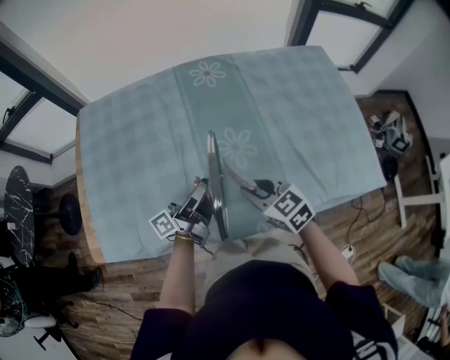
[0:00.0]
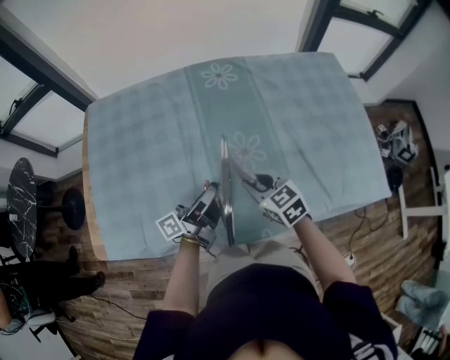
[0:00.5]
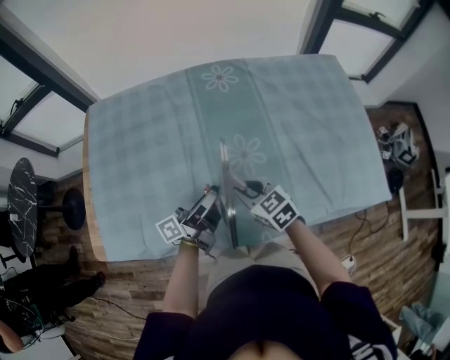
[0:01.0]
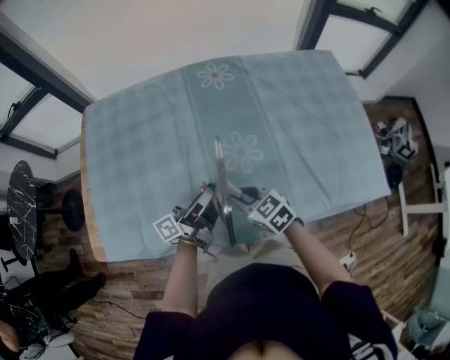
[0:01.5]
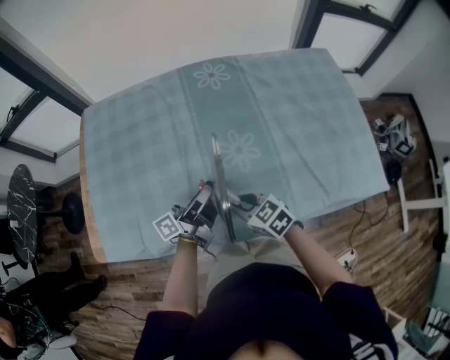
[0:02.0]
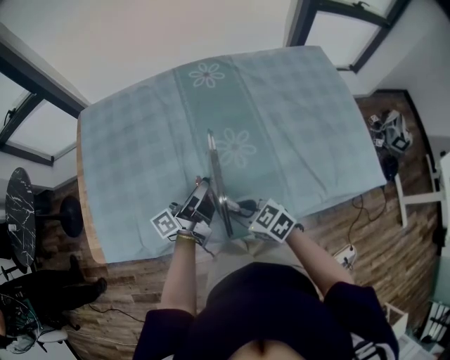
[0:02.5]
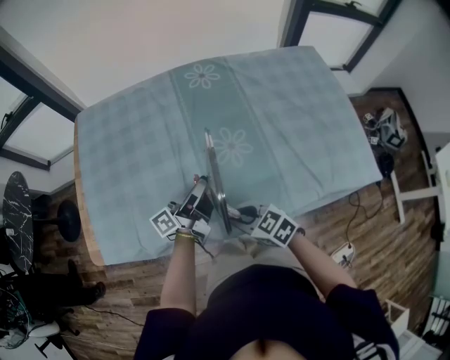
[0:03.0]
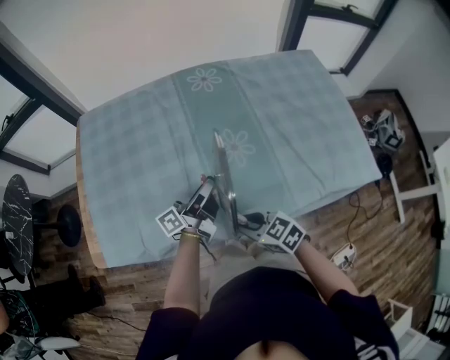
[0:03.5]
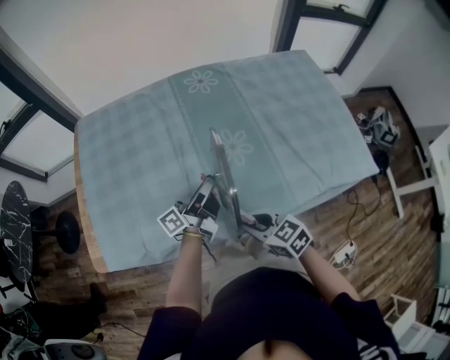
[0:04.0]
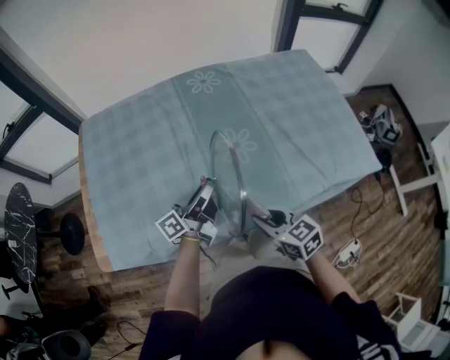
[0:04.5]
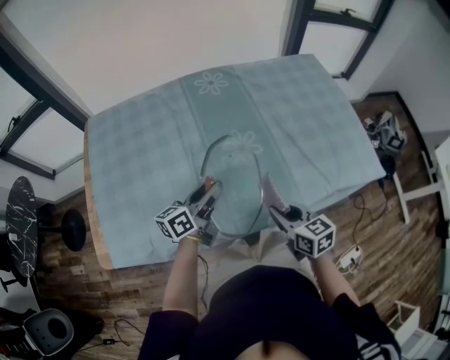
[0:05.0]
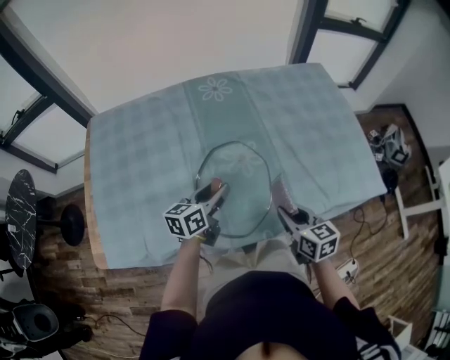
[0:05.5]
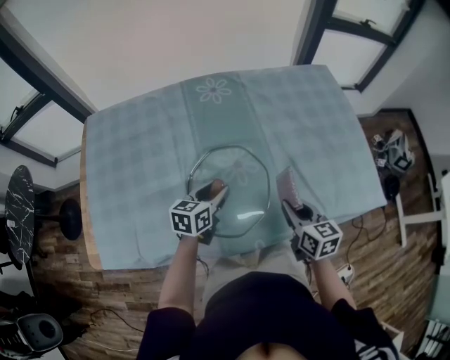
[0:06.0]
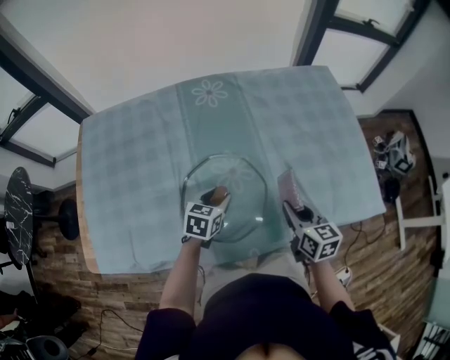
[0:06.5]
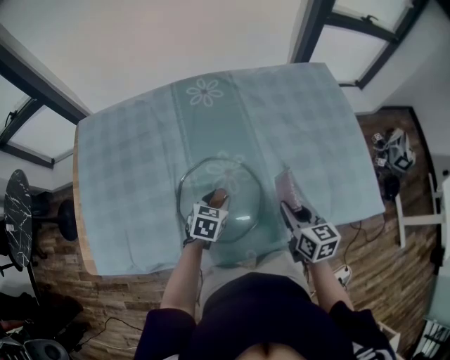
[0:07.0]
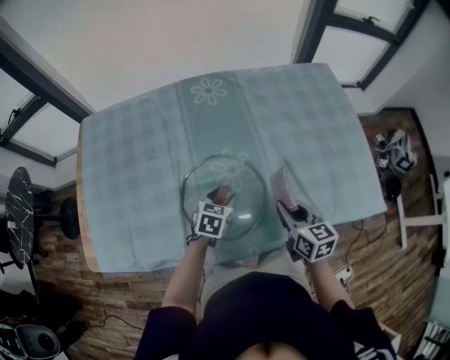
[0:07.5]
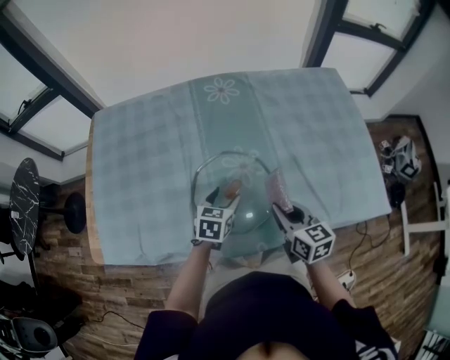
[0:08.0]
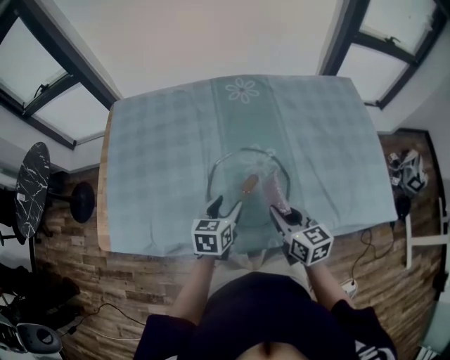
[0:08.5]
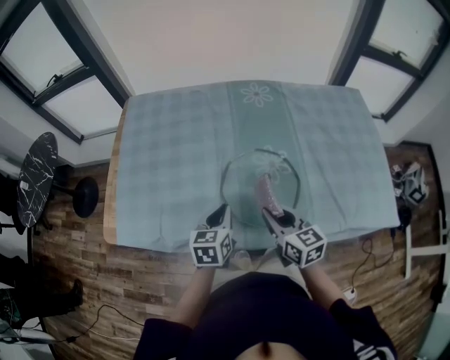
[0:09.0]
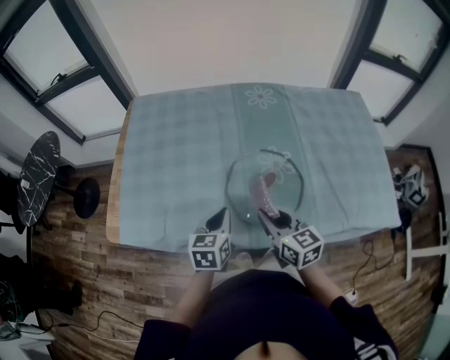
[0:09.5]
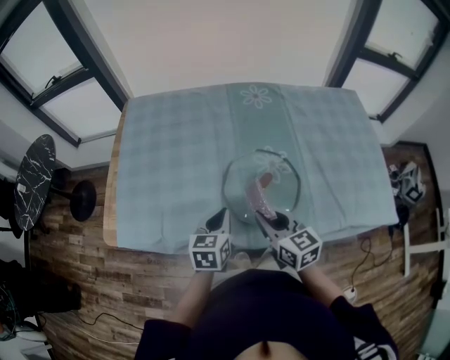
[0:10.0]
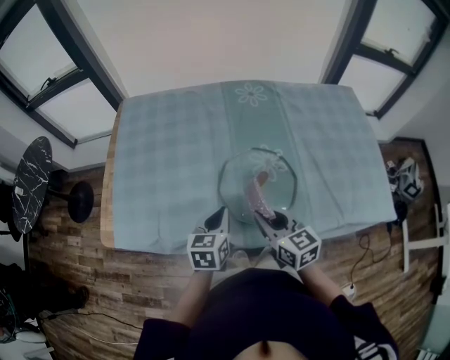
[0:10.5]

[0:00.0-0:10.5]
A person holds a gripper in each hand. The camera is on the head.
0:00.0 to 0:02.0: The right gripper shifts approximately 10 cm downward and to the left.
0:02.0 to 0:04.0: The right gripper shifts approximately 10 cm backward.
0:04.0 to 0:06.5: The left gripper heads downward, to the right and forward, covering about 15 cm, and angles its fingers downward, by roughly 60 degrees, while the right gripper heads to the right and forward, covering about 25 cm, and swivels some 40 degrees.
0:06.5 to 0:08.5: The right gripper is displaced to the left by some 15 cm. Meanwhile the left gripper goes approximately 10 cm backward and to the left, and opens.
0:08.5 to 0:10.5: Both grippers move to the left, approximately 10 cm. The left gripper closes up.

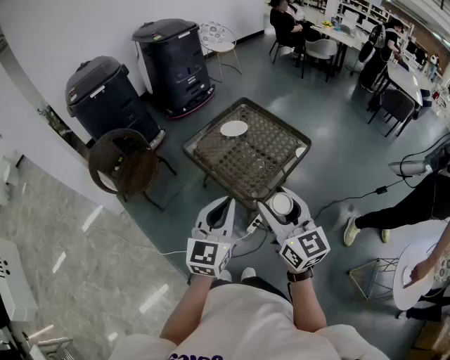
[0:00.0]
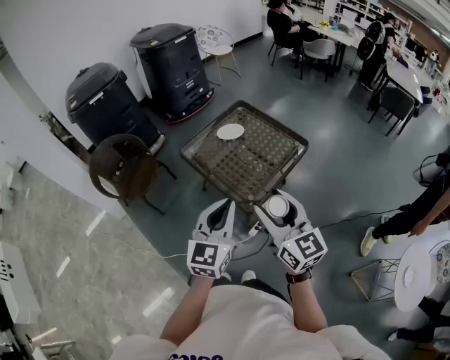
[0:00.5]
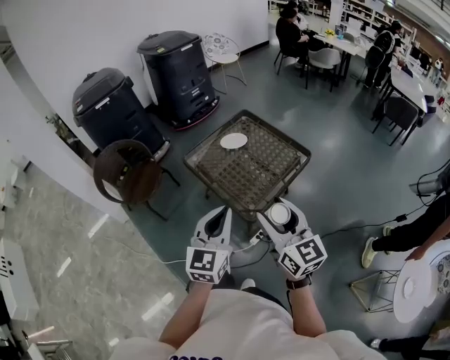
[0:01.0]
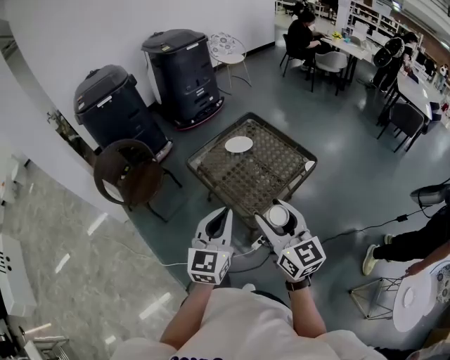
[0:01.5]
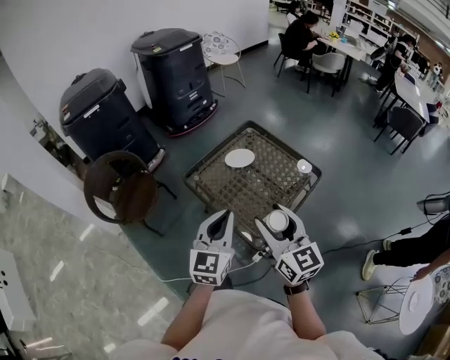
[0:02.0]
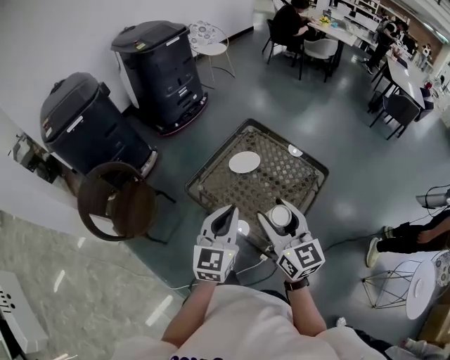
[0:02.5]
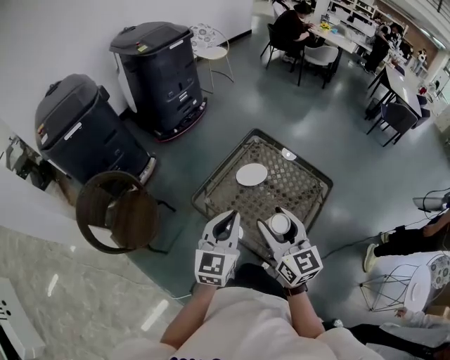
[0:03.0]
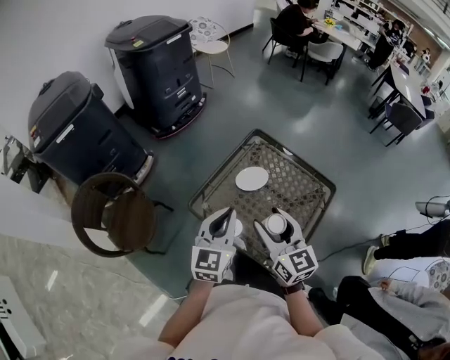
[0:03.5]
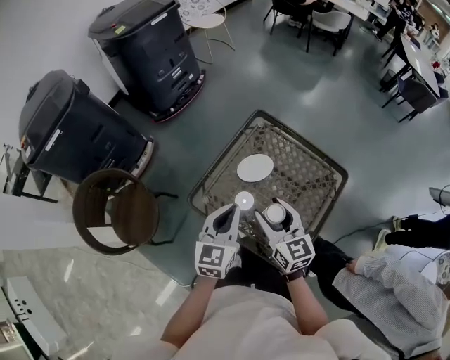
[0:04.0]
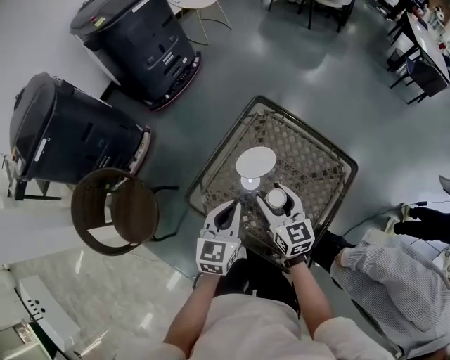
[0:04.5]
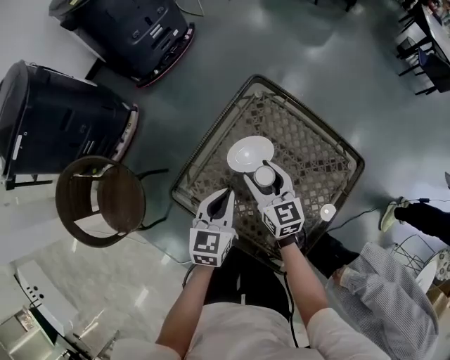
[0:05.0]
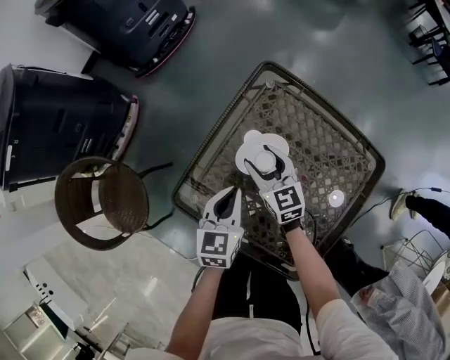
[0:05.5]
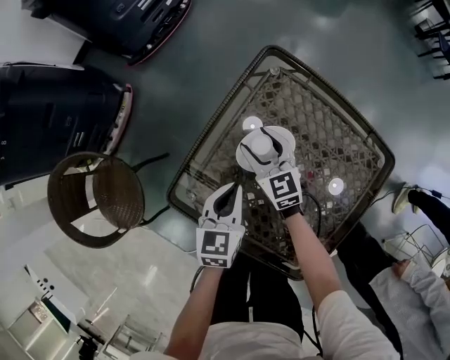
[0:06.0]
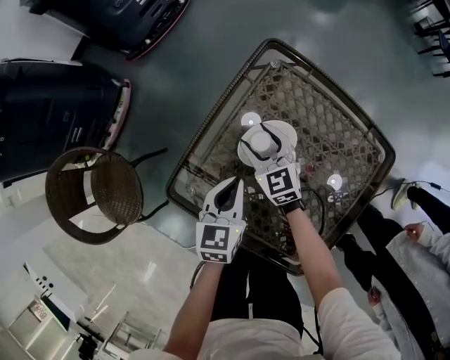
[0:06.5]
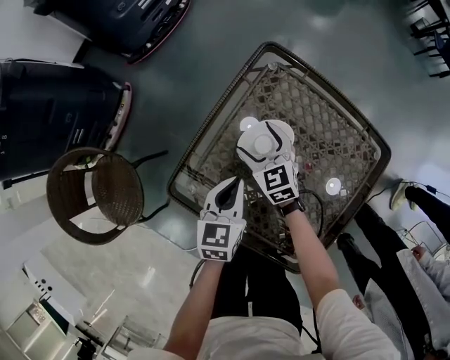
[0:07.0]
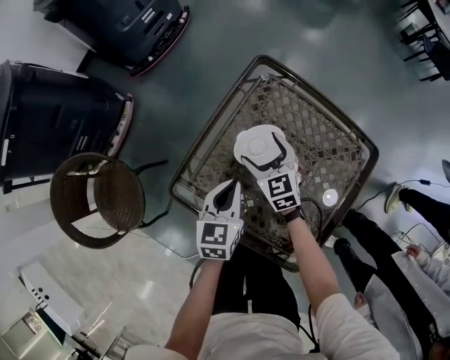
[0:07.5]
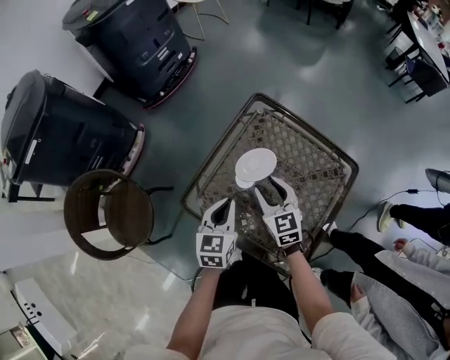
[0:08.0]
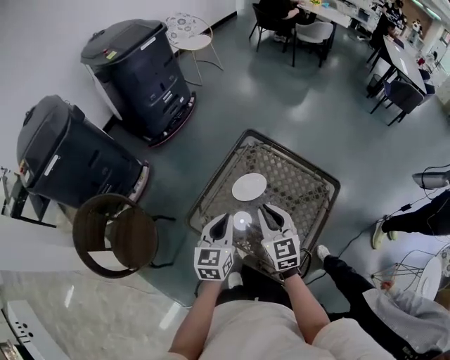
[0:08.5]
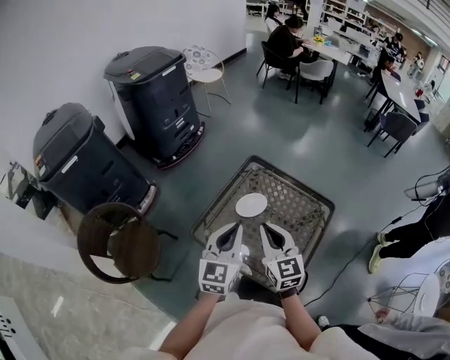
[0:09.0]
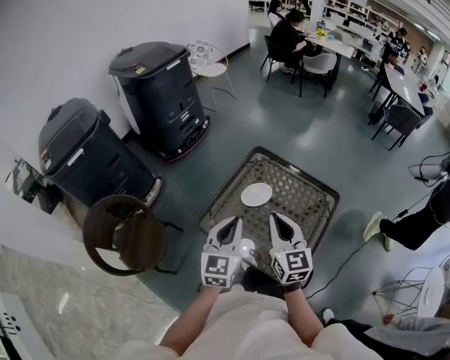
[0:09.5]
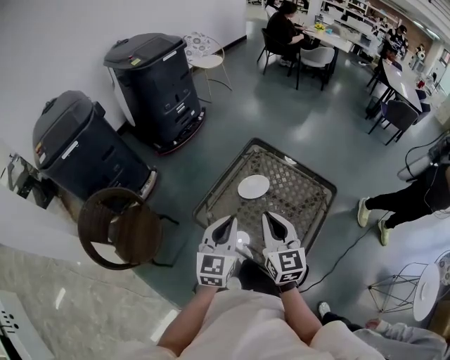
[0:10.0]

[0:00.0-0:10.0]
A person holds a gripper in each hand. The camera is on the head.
0:00.0 to 0:02.0: The two grippers go roughly 15 cm forward.
0:02.0 to 0:04.0: Both grippers travel together forward and downward, some 30 cm.
0:04.0 to 0:06.0: Both grippers travel together downward and forward, about 30 cm. The left gripper swivels roughly 20 degrees.
0:06.0 to 0:08.0: The left gripper is displaced upward and backward by about 10 cm, while the right gripper moves upward and backward, about 20 cm, and opens, then closes once more.
0:08.0 to 0:10.0: Both grippers travel together upward and backward, roughly 25 cm. The right gripper rotates roughly 20 degrees, and closes its fingers, while the left gripper swivels some 20 degrees.

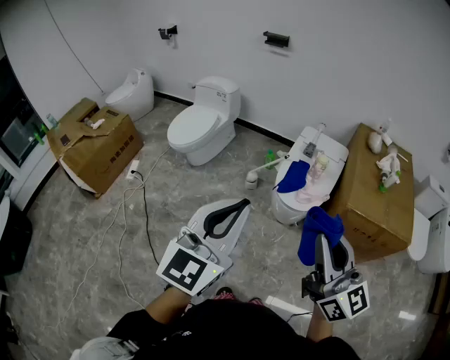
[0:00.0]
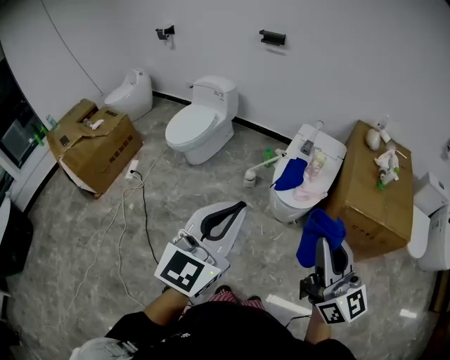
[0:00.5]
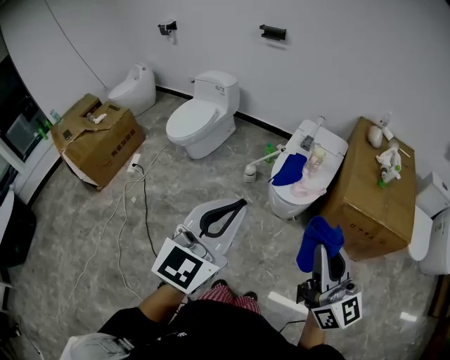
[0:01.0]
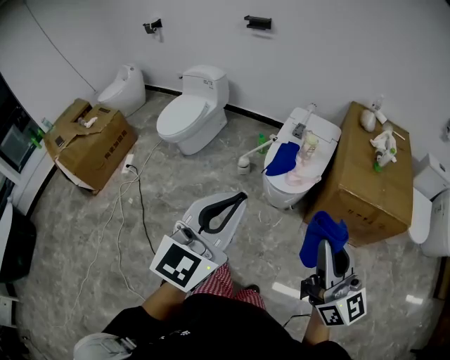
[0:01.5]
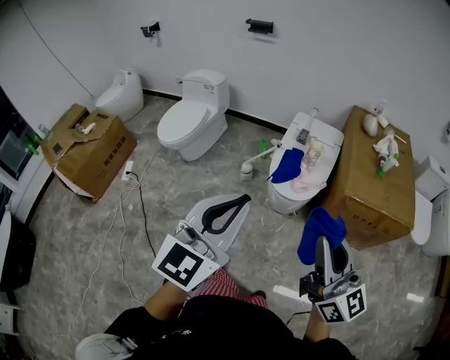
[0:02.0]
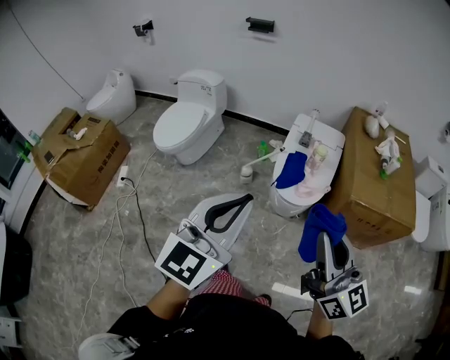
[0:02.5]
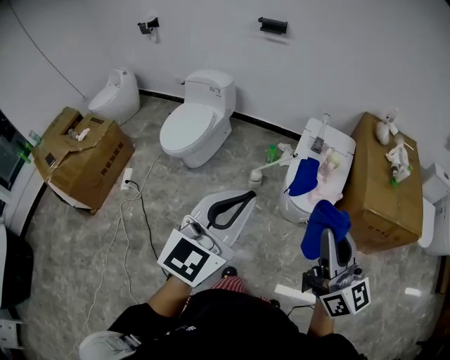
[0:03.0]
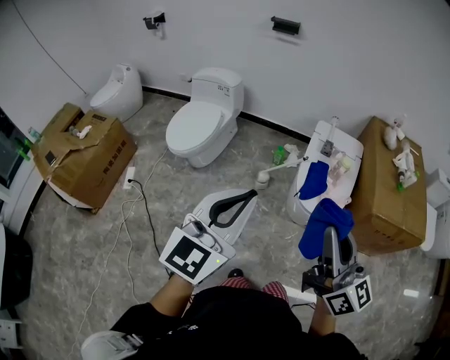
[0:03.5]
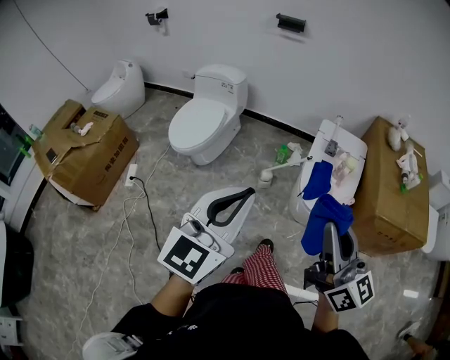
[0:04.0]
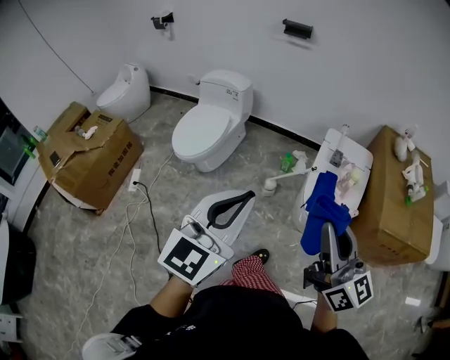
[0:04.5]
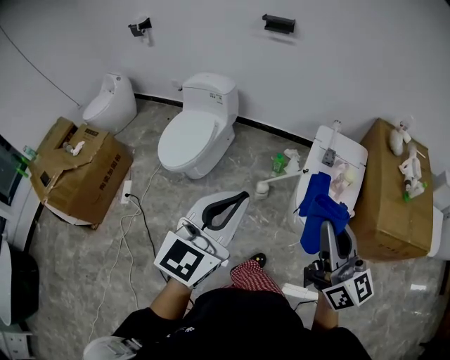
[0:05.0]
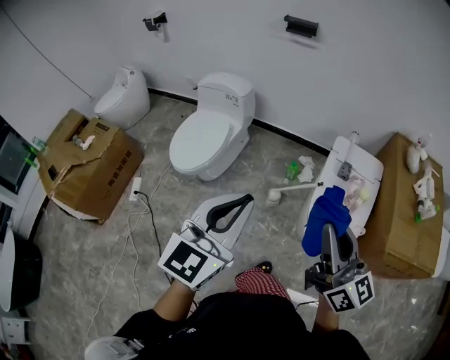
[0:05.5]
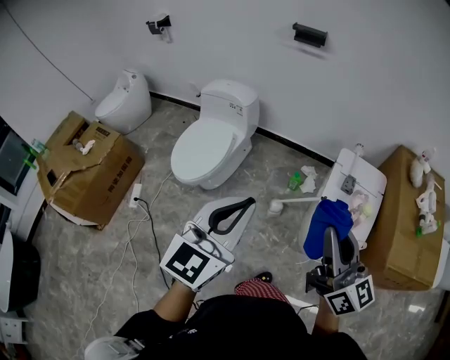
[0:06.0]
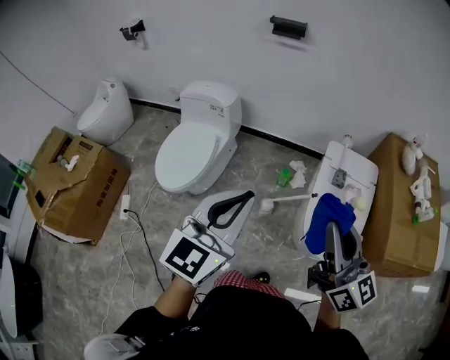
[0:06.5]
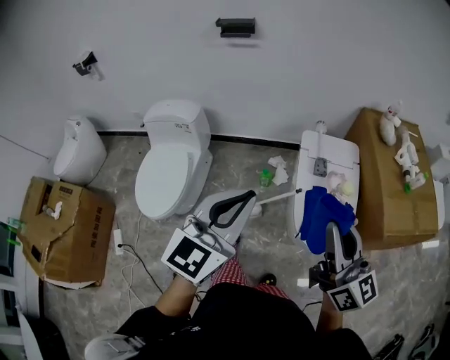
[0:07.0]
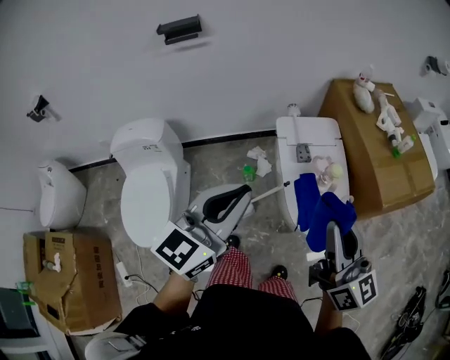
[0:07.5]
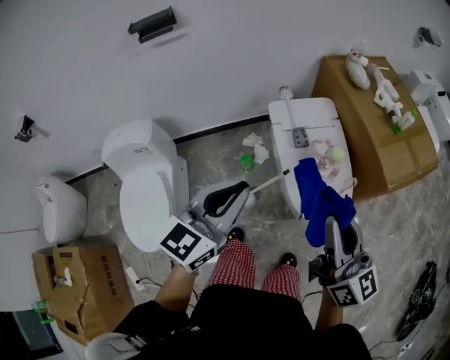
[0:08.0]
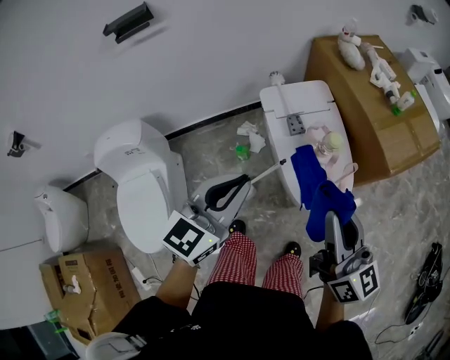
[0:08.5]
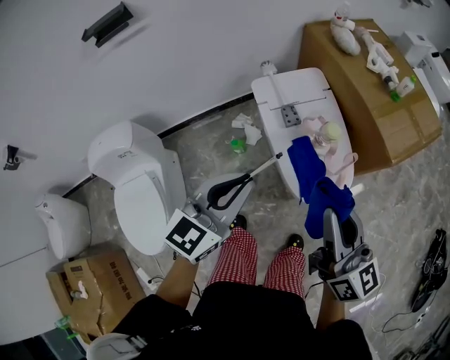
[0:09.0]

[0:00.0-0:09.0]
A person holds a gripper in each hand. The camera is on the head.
0:02.0 to 0:04.5: The grippers both shift to the left and forward by about 30 cm.
0:04.5 to 0:07.0: Both grippers move forward, about 25 cm.
0:07.0 to 0:09.0: The right gripper shifts by roughly 10 cm, and turns by approximately 30 degrees, while the left gripper ends up some 20 cm from where it was, and turns by about 30 degrees.
